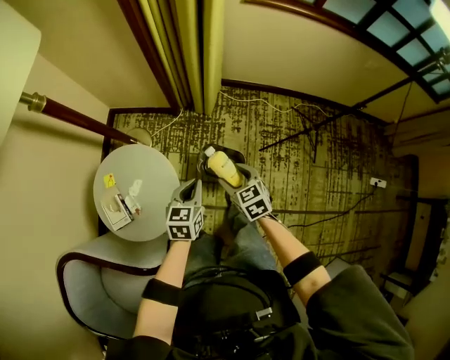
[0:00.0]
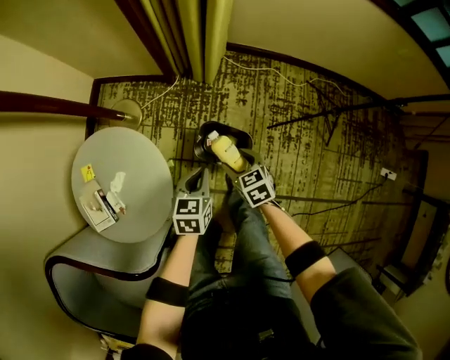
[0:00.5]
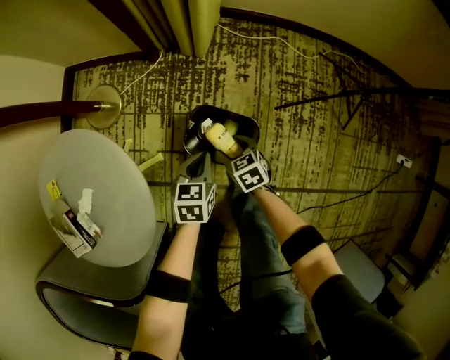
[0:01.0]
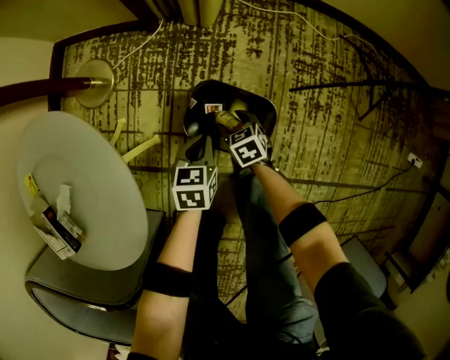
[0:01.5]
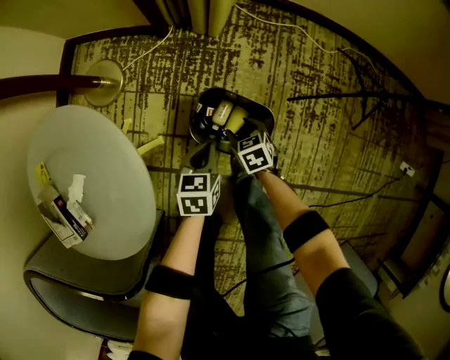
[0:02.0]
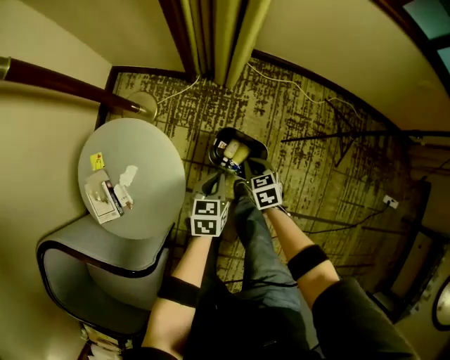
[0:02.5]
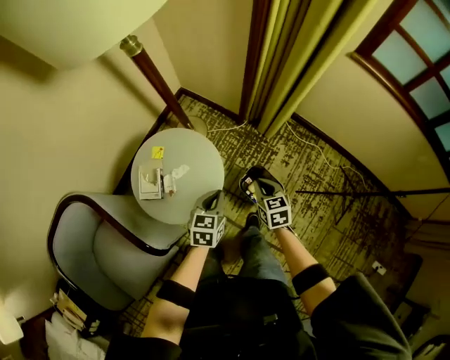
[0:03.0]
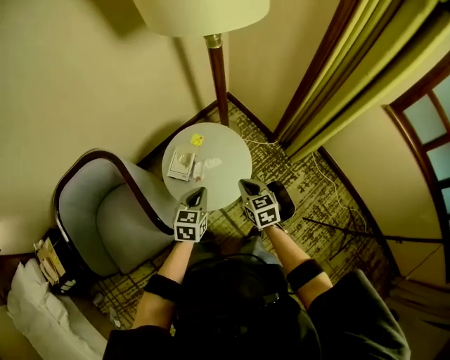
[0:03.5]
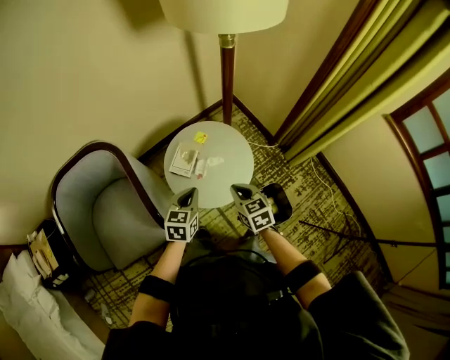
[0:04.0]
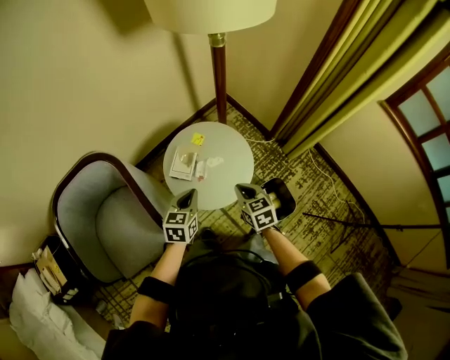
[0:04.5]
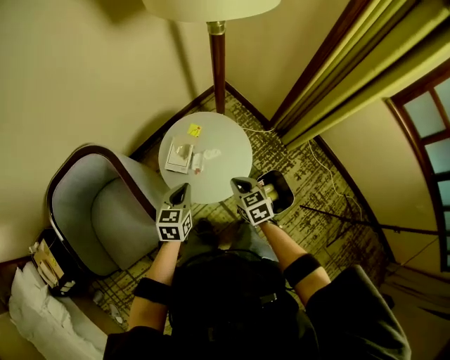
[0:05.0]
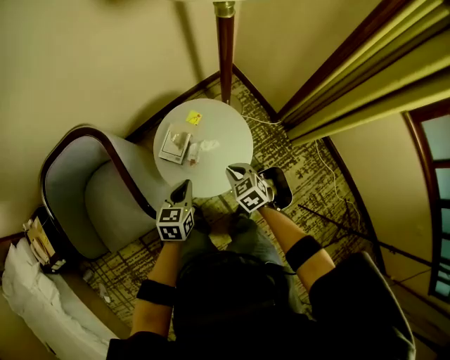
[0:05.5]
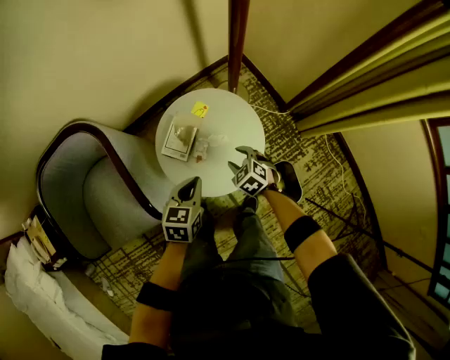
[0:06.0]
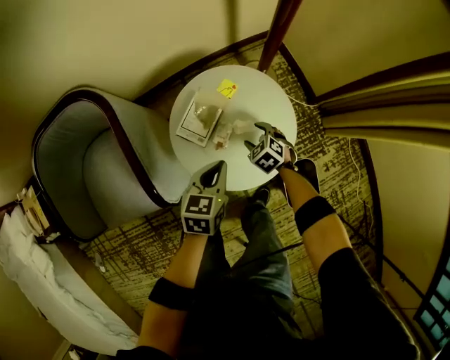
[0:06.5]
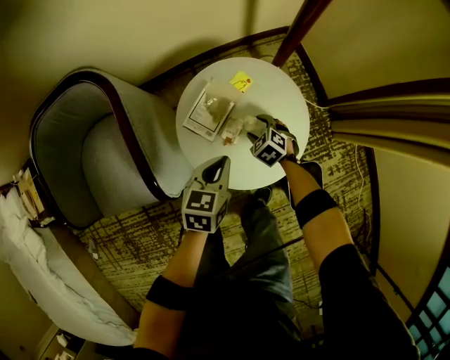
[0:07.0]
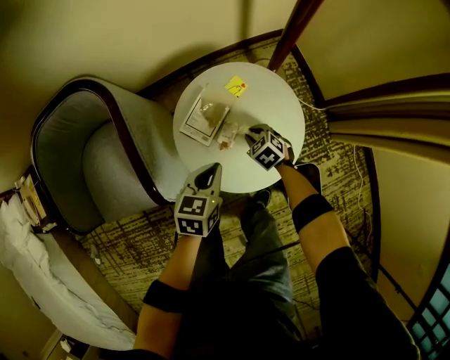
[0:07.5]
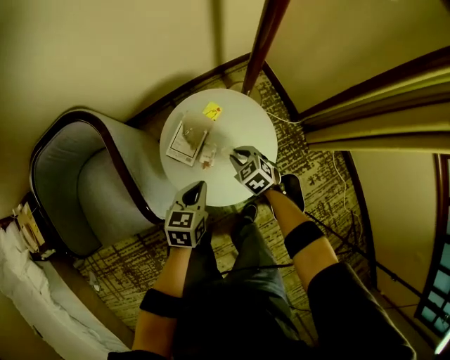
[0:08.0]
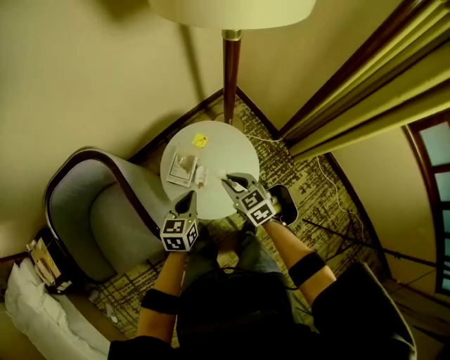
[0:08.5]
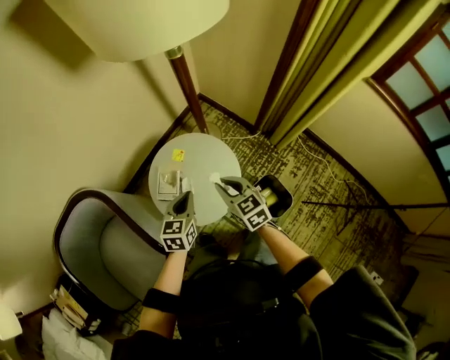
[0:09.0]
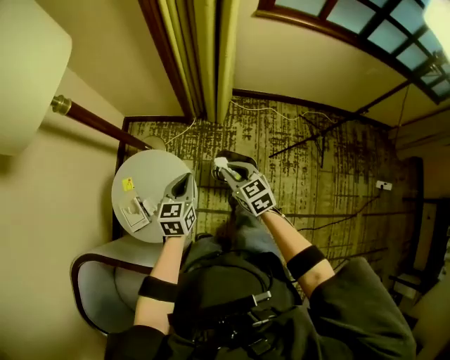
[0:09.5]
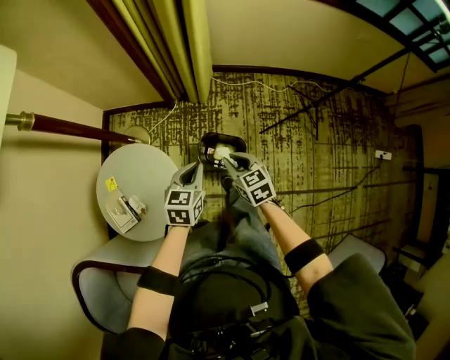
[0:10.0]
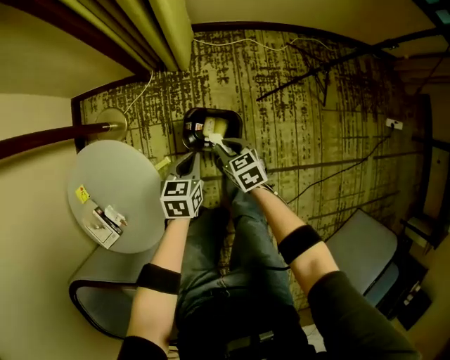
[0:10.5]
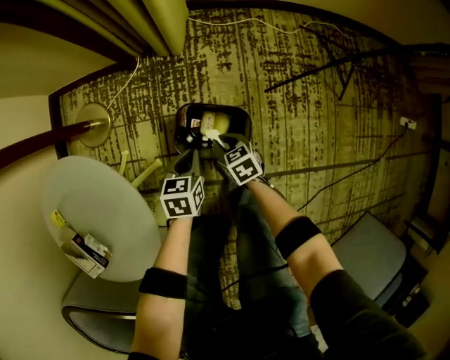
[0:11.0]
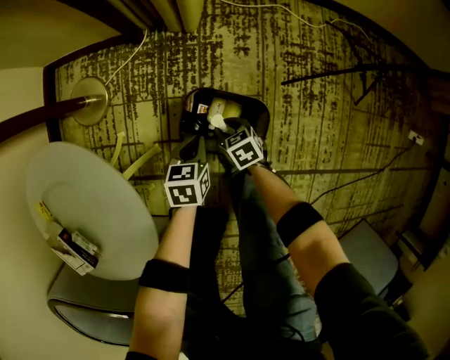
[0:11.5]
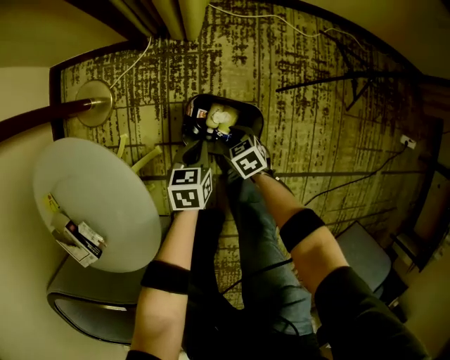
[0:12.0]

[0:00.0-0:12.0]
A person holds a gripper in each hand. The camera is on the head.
0:00.0 to 0:02.0: The grippers both shift downward by approximately 40 cm.
0:02.0 to 0:04.0: The grippers both shift upward by some 50 cm. The left gripper swivels some 50 degrees, while the right gripper swivels approximately 50 degrees, and closes its fingers.
0:04.0 to 0:06.0: The right gripper travels downward and forward by about 20 cm, turns by approximately 30 degrees, and opens up. The left gripper shifts approximately 10 cm downward and forward.
0:06.0 to 0:08.0: The right gripper heads forward, covering some 5 cm, reaches roughly 15 cm downward, then returns, and closes its fingers; the left gripper is displaced downward by approximately 5 cm.
0:08.0 to 0:10.0: The right gripper moves about 50 cm, and turns by roughly 80 degrees. The left gripper shifts by roughly 40 cm, and changes its angle by approximately 60 degrees.
0:10.0 to 0:12.0: The two grippers go some 40 cm downward. The right gripper changes its angle by approximately 20 degrees, and opens its fingers.

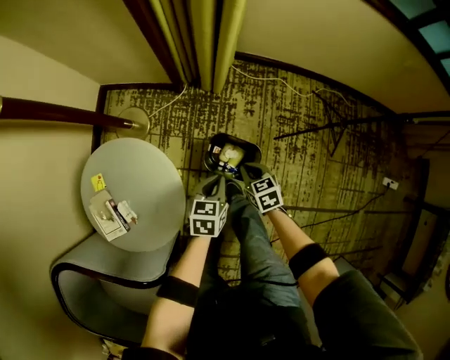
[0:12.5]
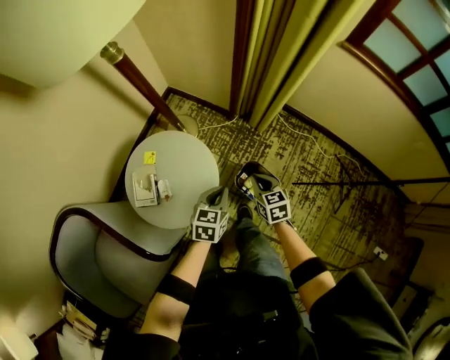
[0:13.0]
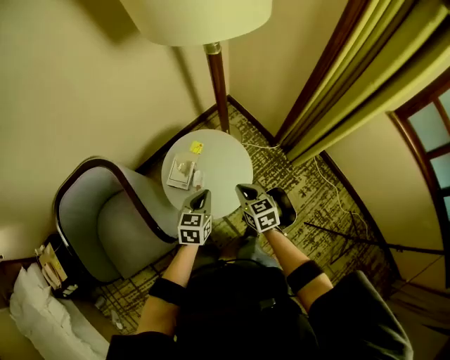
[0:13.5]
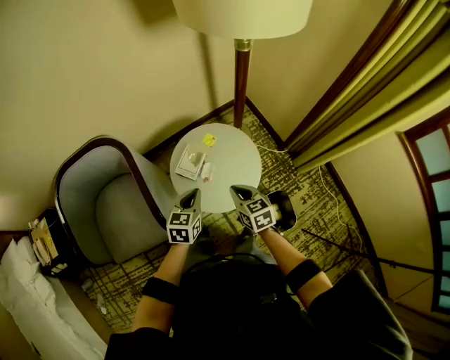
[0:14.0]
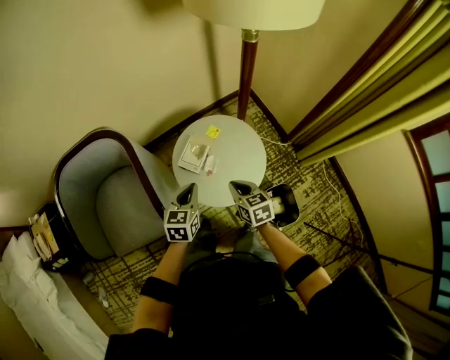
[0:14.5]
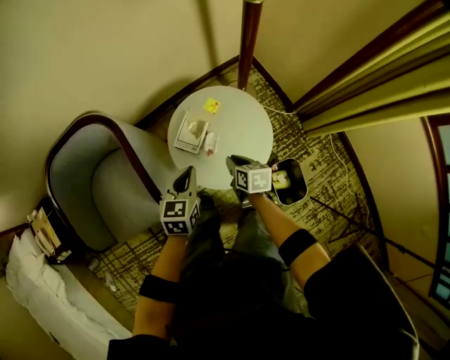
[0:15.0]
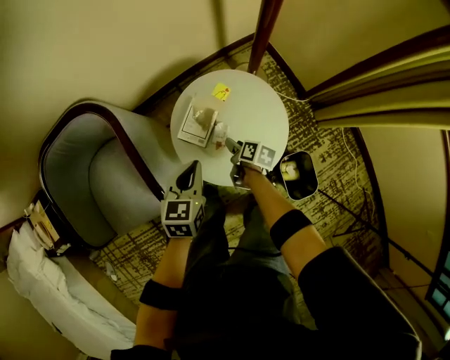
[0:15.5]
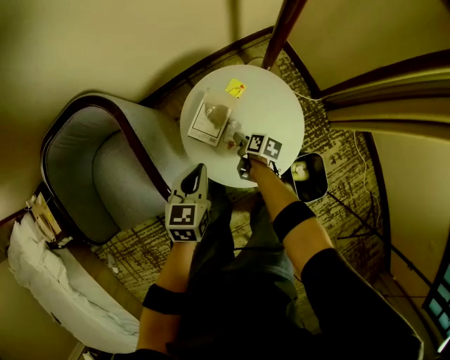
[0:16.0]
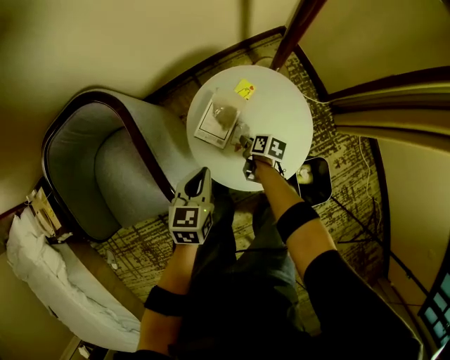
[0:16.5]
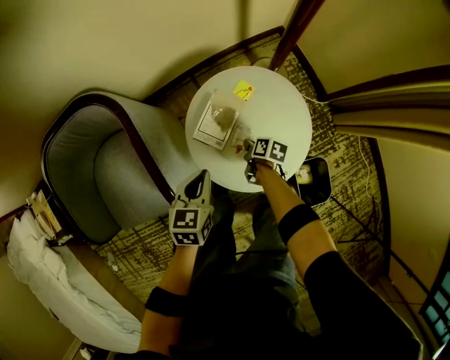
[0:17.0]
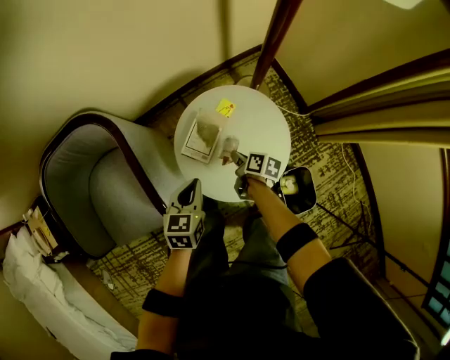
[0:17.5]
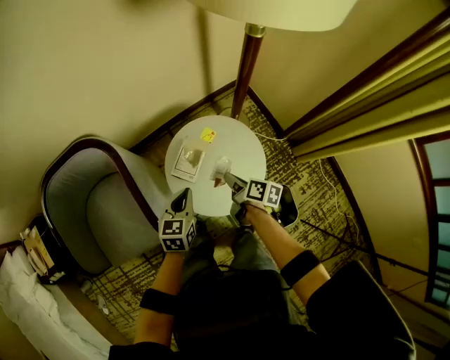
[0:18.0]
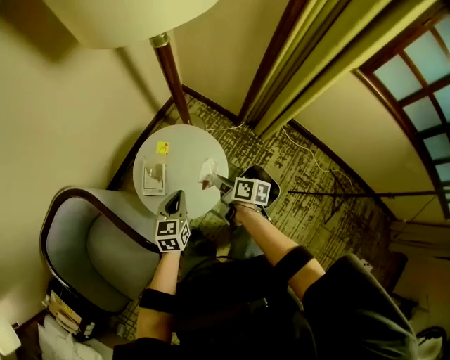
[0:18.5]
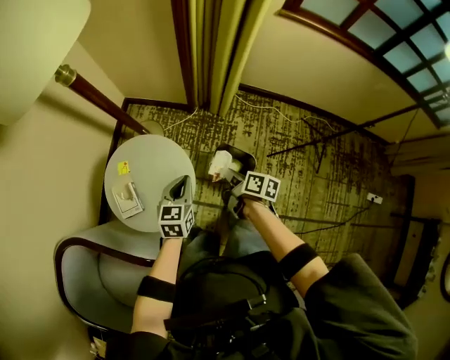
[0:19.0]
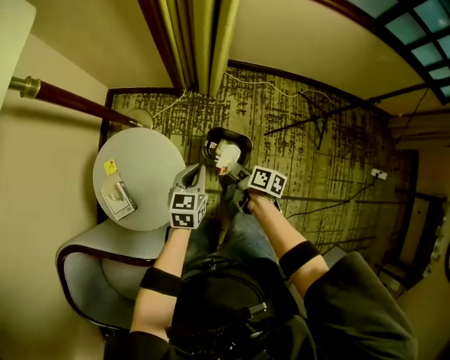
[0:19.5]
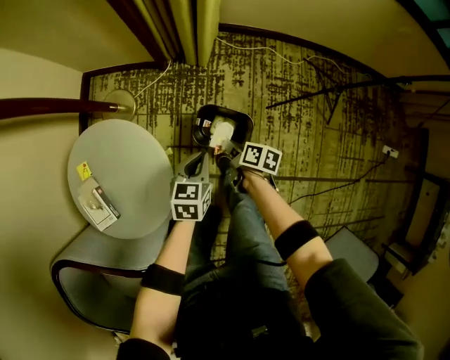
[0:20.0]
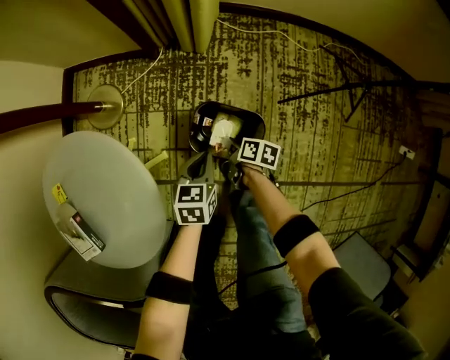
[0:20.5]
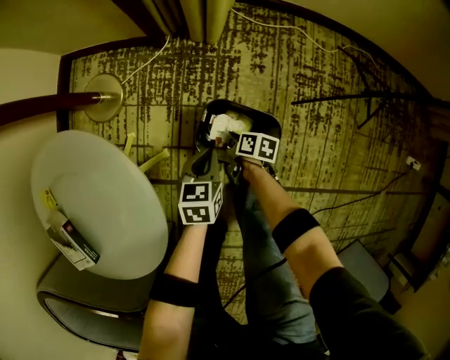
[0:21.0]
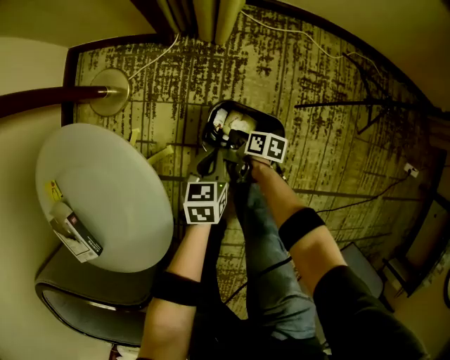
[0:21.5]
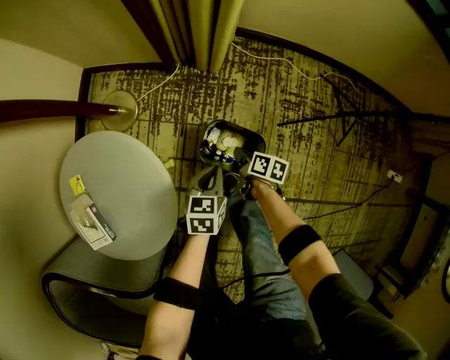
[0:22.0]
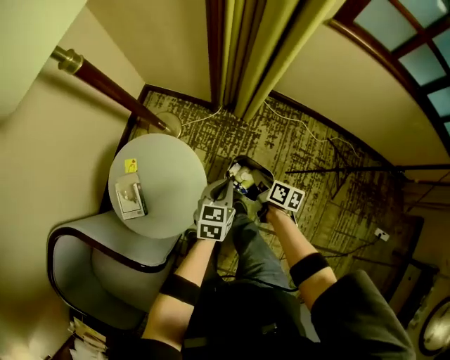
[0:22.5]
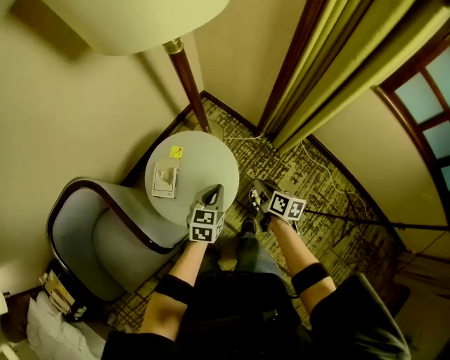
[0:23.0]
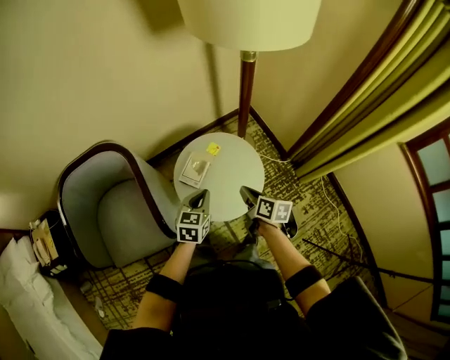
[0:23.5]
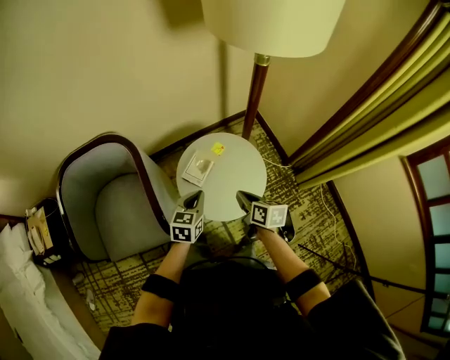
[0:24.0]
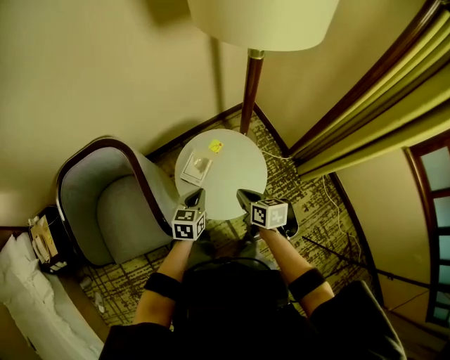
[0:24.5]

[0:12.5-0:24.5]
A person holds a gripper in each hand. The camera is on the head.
0:12.5 to 0:14.5: The right gripper moves roughly 50 cm, and changes its angle by some 50 degrees. The left gripper changes place by approximately 50 cm, and rotates roughly 60 degrees.
0:14.5 to 0:16.5: The left gripper is displaced downward and forward by about 15 cm. Meanwhile the right gripper goes some 30 cm downward and forward, rolls clockwise, seen from behind, by some 50 degrees, and opens.
0:16.5 to 0:18.5: The left gripper goes some 15 cm to the right and upward, and changes its angle by approximately 20 degrees; the right gripper goes some 30 cm upward and to the right, changes its angle by about 30 degrees, and closes its fingers.
0:18.5 to 0:20.5: The grippers both shift downward by roughly 40 cm. The left gripper rotates some 40 degrees; the right gripper swivels about 40 degrees.
0:20.5 to 0:22.5: Both grippers travel together upward, some 35 cm. The right gripper changes its angle by about 20 degrees.
0:22.5 to 0:24.5: The left gripper moves approximately 40 cm, and turns by about 50 degrees, while the right gripper moves roughly 40 cm, and turns by approximately 60 degrees.

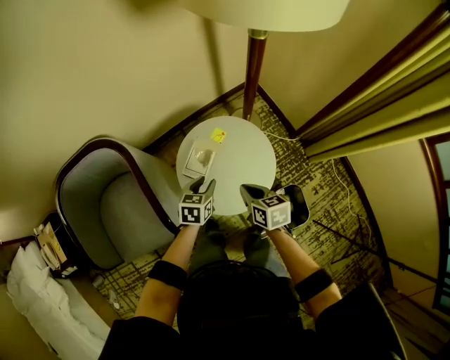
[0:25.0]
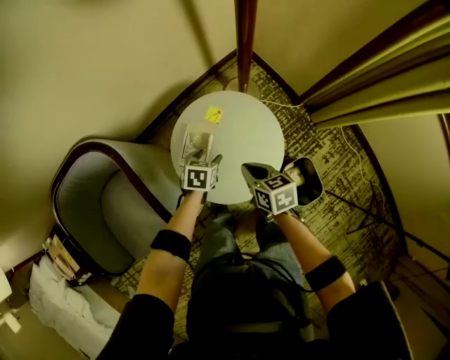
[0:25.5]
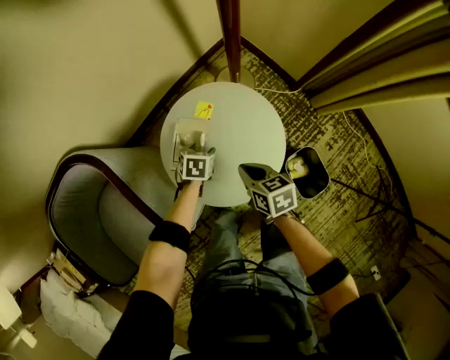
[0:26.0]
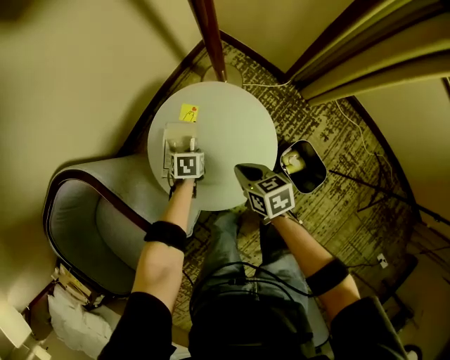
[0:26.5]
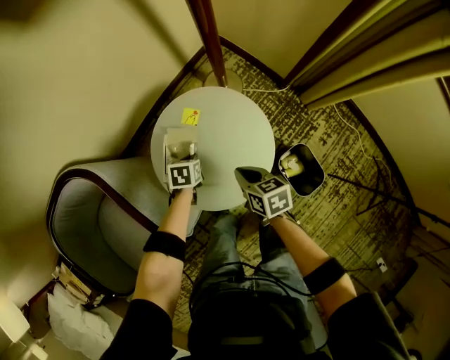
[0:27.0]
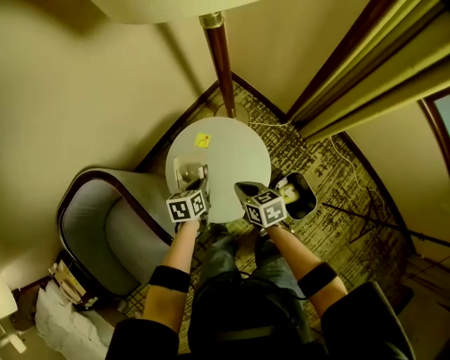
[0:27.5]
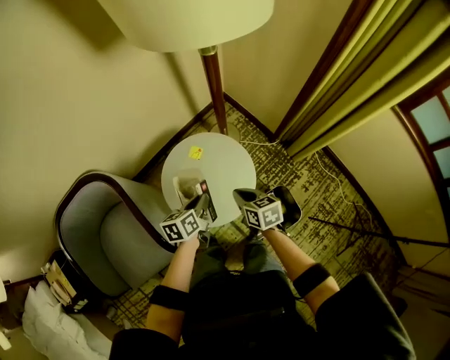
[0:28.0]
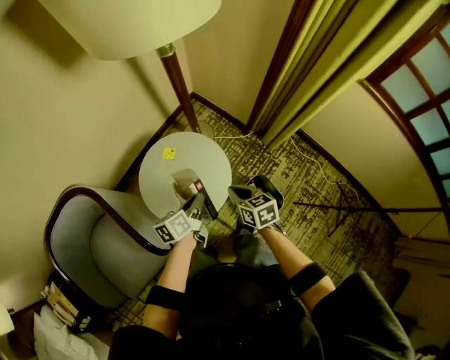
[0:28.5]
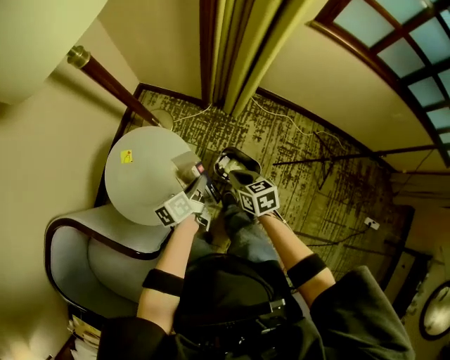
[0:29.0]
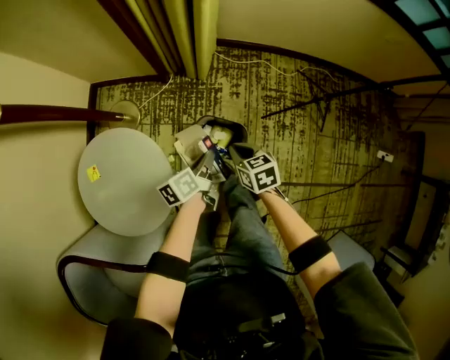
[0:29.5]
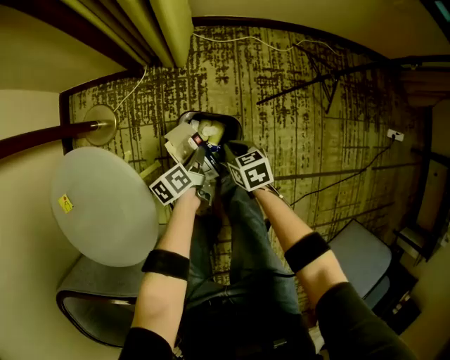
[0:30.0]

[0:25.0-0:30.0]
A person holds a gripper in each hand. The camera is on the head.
0:25.0 to 0:27.5: The left gripper moves roughly 25 cm downward and comes back, and closes its fingers; the right gripper is displaced downward by about 5 cm.
0:27.5 to 0:30.0: Both grippers are carried about 50 cm. The left gripper rotates roughly 40 degrees; the right gripper rotates approximately 50 degrees.
